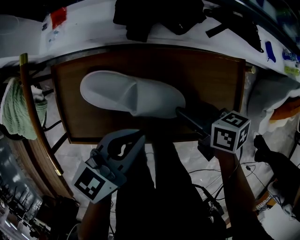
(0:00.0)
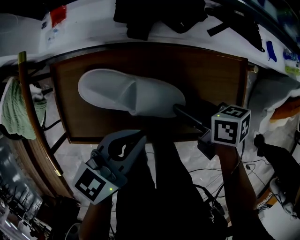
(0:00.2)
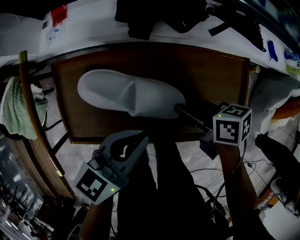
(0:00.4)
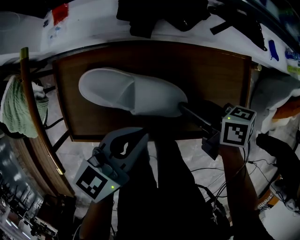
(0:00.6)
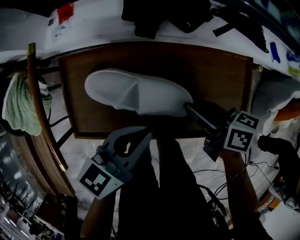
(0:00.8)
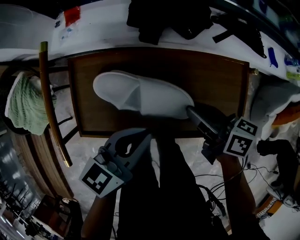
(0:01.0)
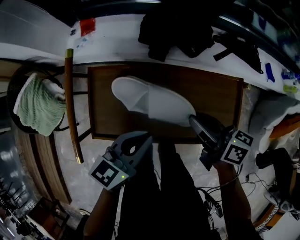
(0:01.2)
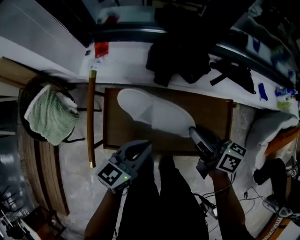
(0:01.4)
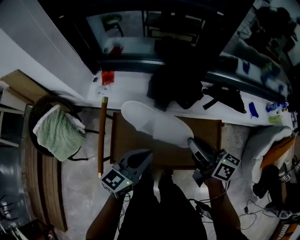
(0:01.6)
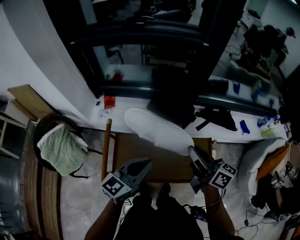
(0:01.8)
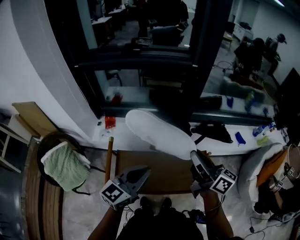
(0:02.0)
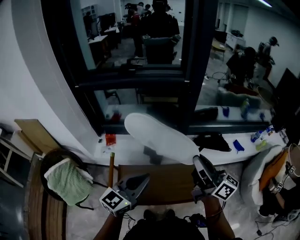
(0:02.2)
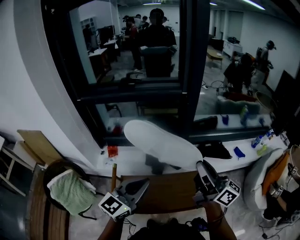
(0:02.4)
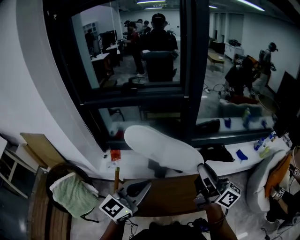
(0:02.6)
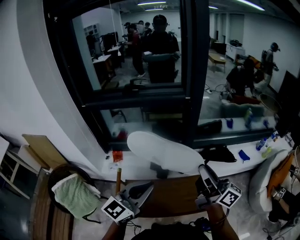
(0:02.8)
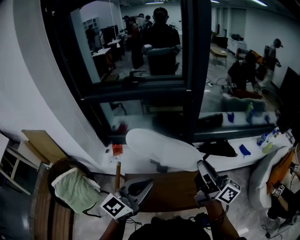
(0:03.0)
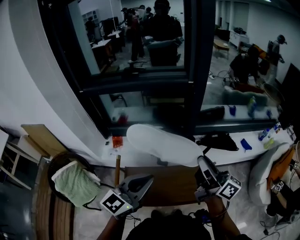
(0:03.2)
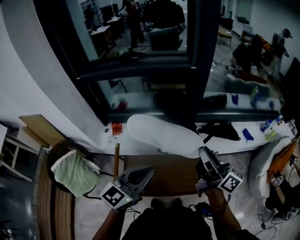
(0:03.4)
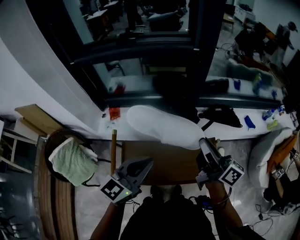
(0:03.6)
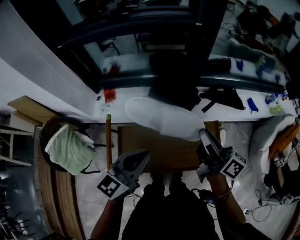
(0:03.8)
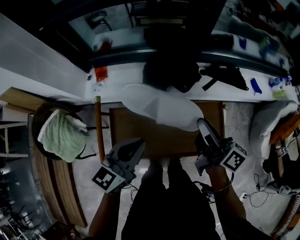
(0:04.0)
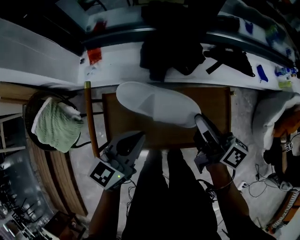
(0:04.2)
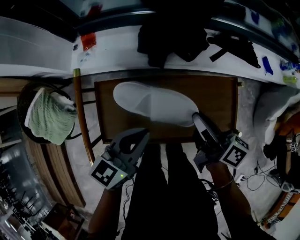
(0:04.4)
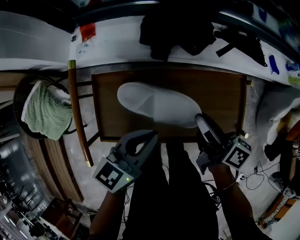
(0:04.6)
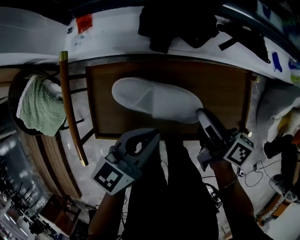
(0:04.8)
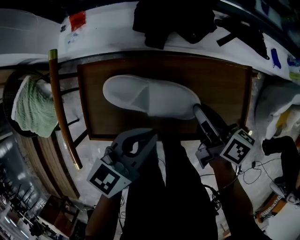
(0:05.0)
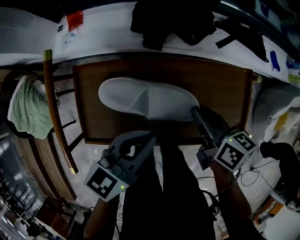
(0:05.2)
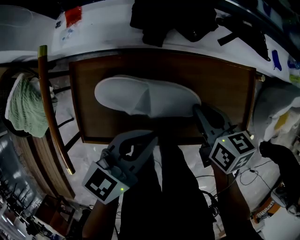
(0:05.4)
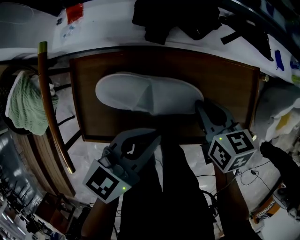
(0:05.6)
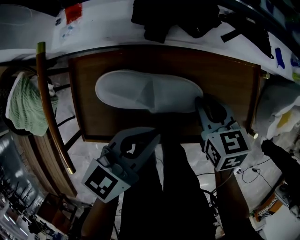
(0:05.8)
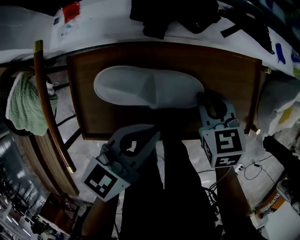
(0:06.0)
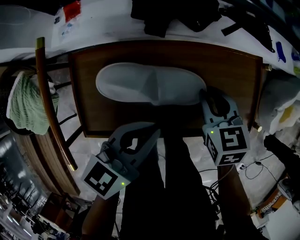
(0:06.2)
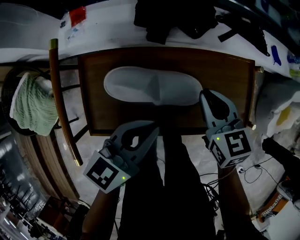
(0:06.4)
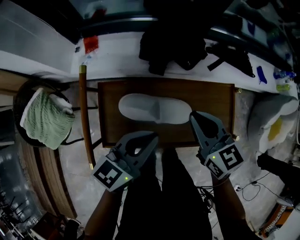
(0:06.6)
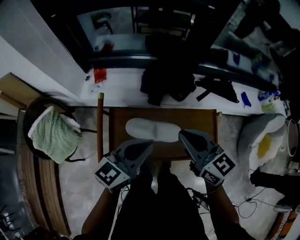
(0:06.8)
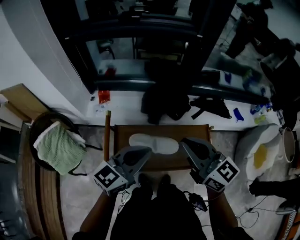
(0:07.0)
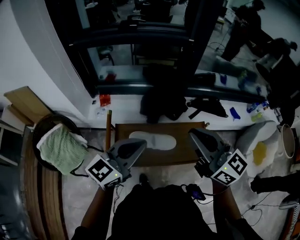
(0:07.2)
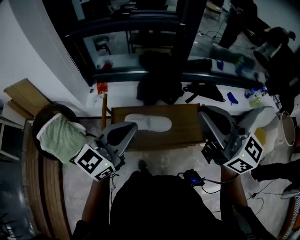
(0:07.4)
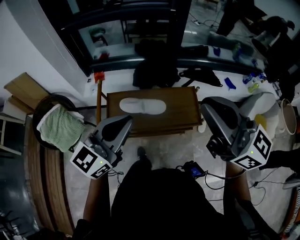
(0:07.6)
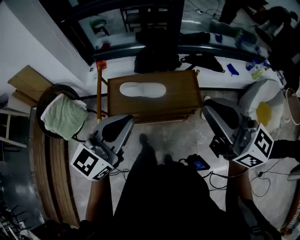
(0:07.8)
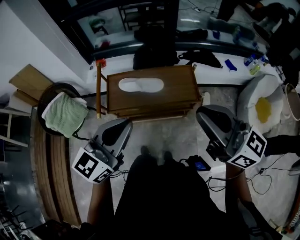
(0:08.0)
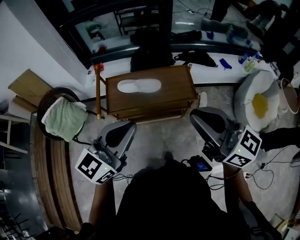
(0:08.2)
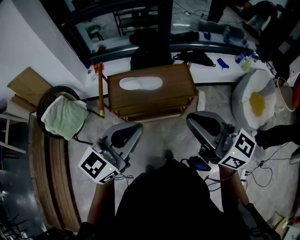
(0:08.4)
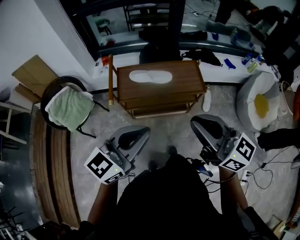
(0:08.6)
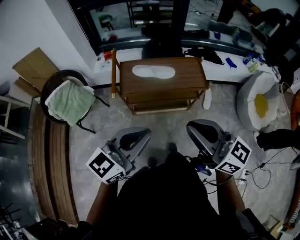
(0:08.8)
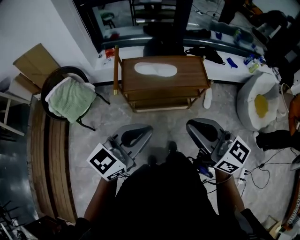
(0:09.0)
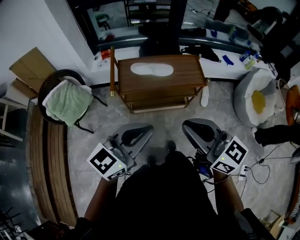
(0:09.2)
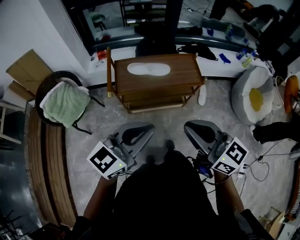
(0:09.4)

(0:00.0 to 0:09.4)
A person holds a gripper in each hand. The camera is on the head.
0:00.0 - 0:01.6: The left gripper travels upward and to the left by some 15 cm, while the right gripper shifts approximately 25 cm upward, tips its fingers upward by some 30 degrees, and closes its fingers.
0:01.6 - 0:03.2: The grippers both shift upward by some 20 cm. The right gripper rotates roughly 30 degrees. The left gripper swivels about 20 degrees.
0:03.2 - 0:04.8: Both grippers travel together downward, some 35 cm. The right gripper points its fingers about 40 degrees further downward, while the left gripper turns by approximately 30 degrees.
0:04.8 - 0:06.2: The right gripper is displaced downward by approximately 5 cm, and rolls counterclockwise, seen from behind, by approximately 60 degrees.
0:06.2 - 0:07.8: Both grippers move upward and backward, roughly 50 cm. The right gripper angles its fingers upward, by some 60 degrees. Meanwhile the left gripper rotates approximately 30 degrees.
0:07.8 - 0:09.4: The right gripper goes some 25 cm backward, to the left and downward; the left gripper is displaced backward by approximately 20 cm.

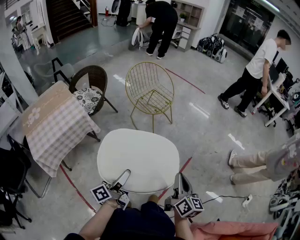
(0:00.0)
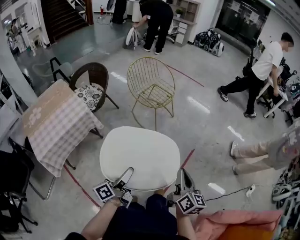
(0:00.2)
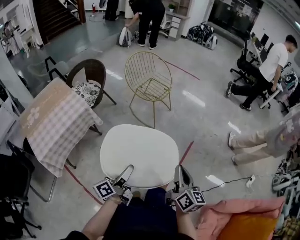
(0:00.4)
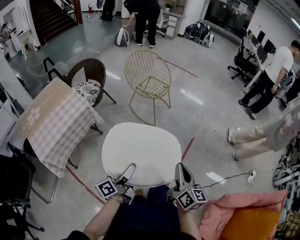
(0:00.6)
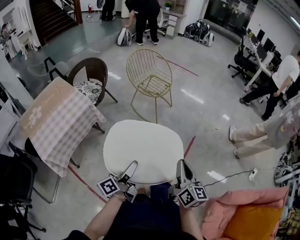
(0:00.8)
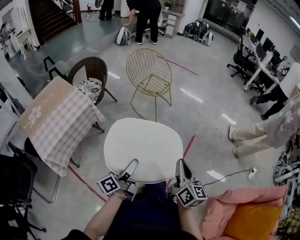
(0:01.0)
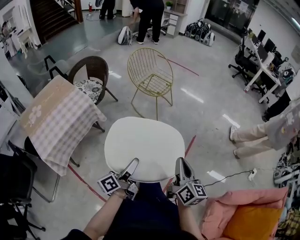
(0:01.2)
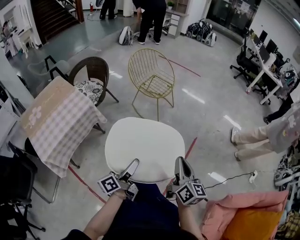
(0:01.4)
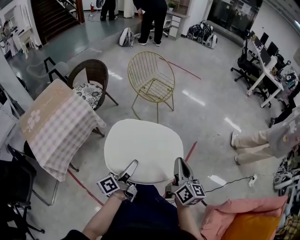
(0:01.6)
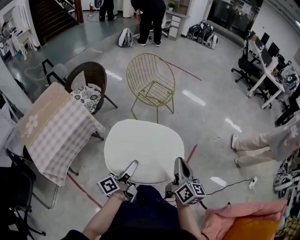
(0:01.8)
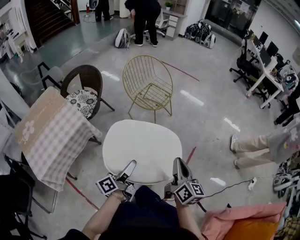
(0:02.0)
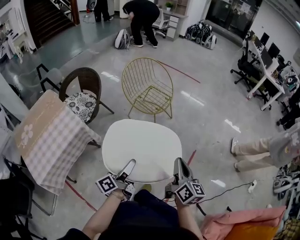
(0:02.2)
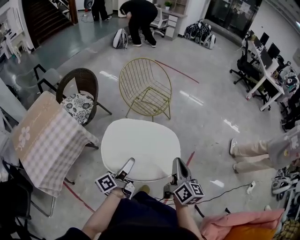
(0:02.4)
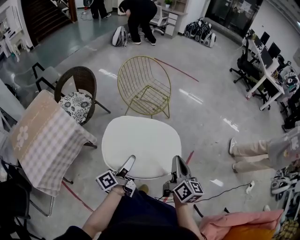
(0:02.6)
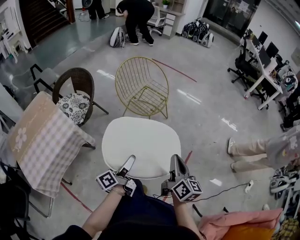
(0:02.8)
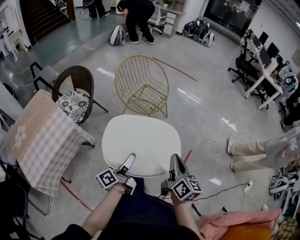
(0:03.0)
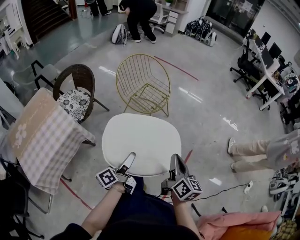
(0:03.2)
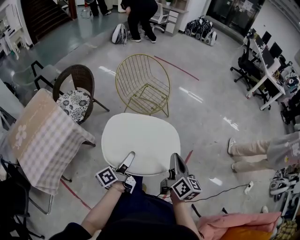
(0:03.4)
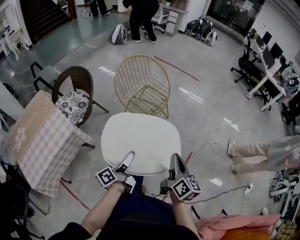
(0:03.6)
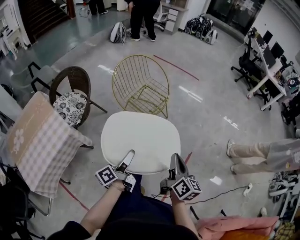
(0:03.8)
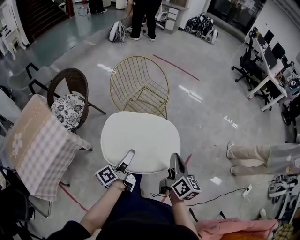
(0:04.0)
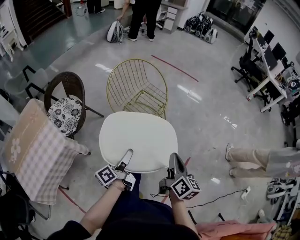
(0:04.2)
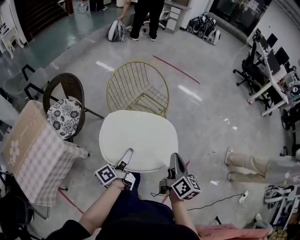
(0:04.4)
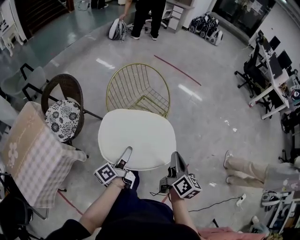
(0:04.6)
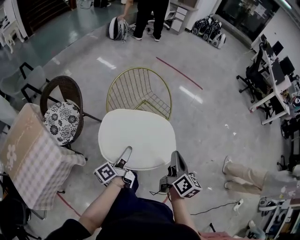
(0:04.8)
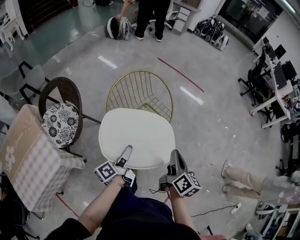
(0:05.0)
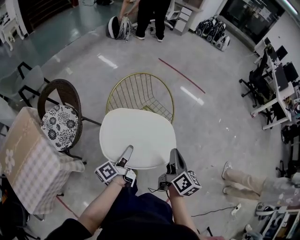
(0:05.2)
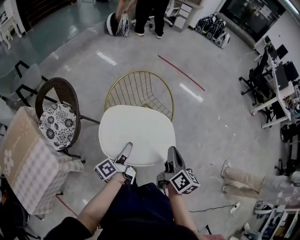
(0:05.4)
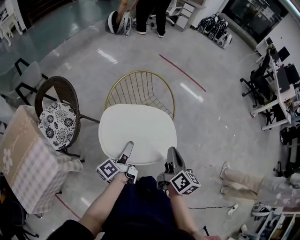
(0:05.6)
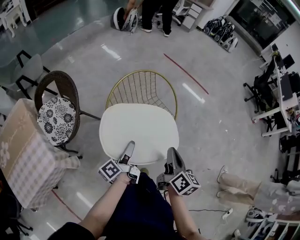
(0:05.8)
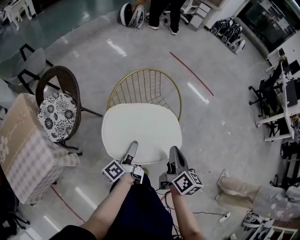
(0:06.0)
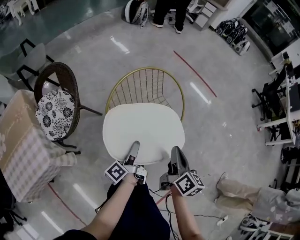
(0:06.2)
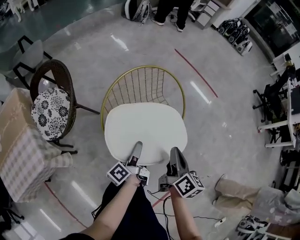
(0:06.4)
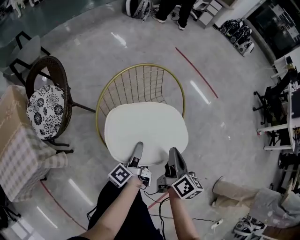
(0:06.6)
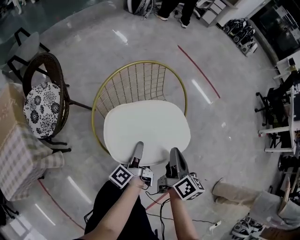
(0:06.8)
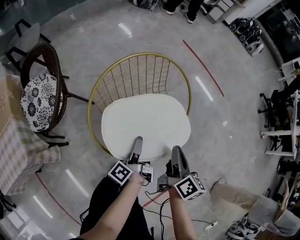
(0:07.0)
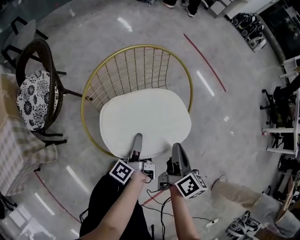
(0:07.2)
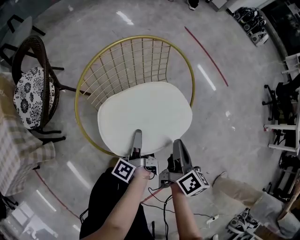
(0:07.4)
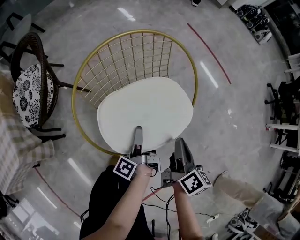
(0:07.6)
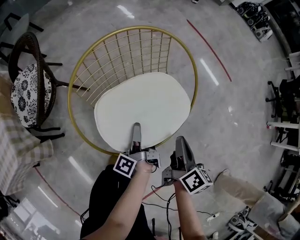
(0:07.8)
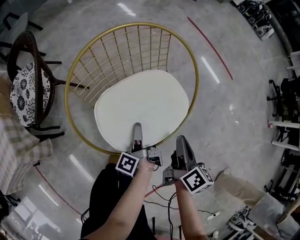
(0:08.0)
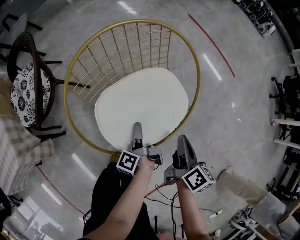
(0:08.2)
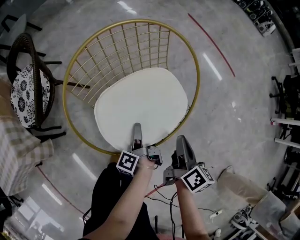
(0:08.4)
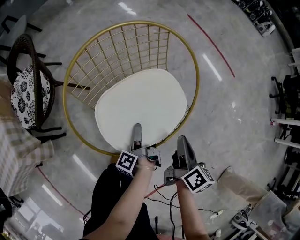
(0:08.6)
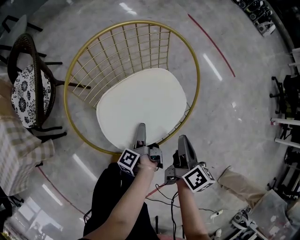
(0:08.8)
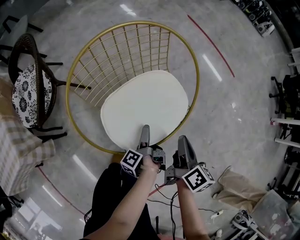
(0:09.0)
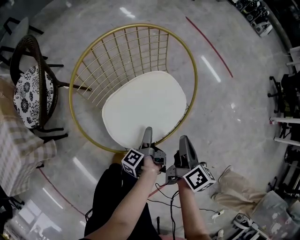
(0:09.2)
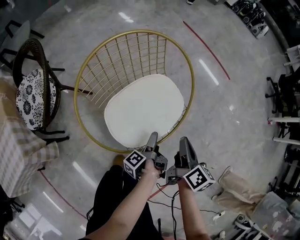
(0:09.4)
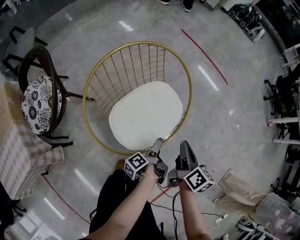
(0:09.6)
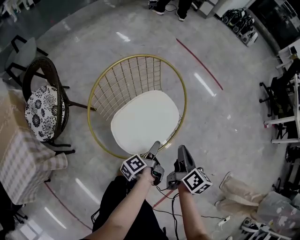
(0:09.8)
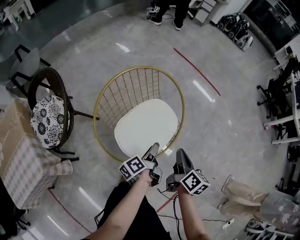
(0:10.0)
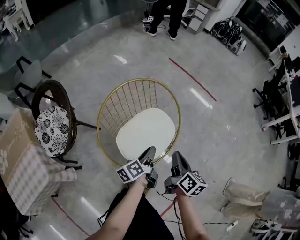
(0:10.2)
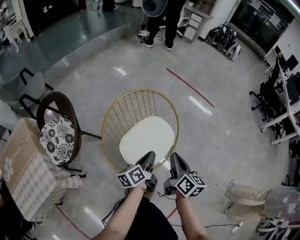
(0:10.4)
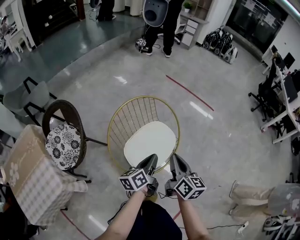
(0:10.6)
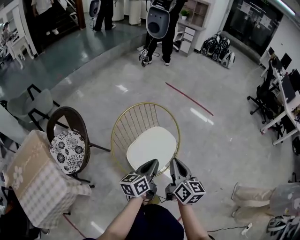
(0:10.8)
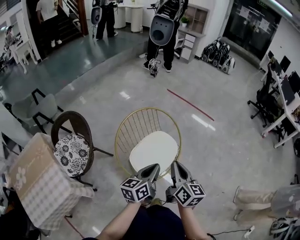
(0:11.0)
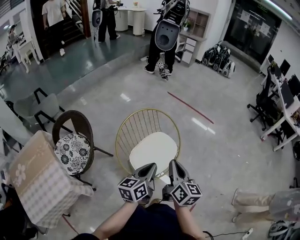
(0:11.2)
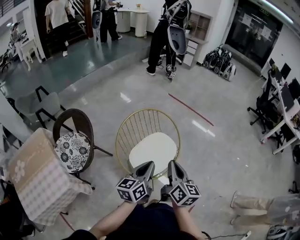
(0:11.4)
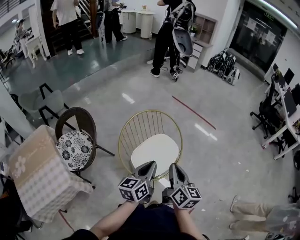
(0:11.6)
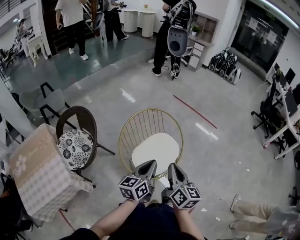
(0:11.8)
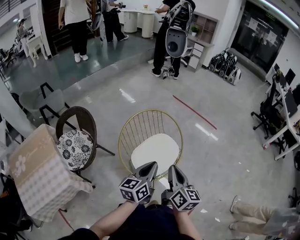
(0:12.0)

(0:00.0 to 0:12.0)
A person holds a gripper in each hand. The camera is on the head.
0:00.0 - 0:01.6: The right gripper changes place by some 10 cm.
0:01.6 - 0:03.0: The right gripper ends up some 15 cm from where it was.
0:03.0 - 0:04.4: The right gripper changes place by some 20 cm.
0:04.4 - 0:06.0: The right gripper changes place by about 25 cm.
0:06.0 - 0:07.6: The right gripper goes roughly 15 cm downward.
0:09.0 - 0:10.4: The right gripper moves upward, roughly 15 cm.
0:10.4 - 0:12.0: The right gripper travels upward by about 10 cm.

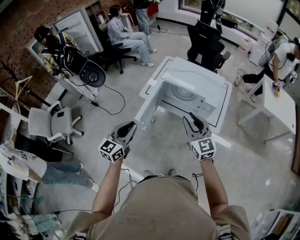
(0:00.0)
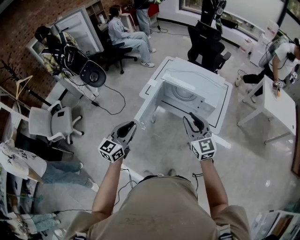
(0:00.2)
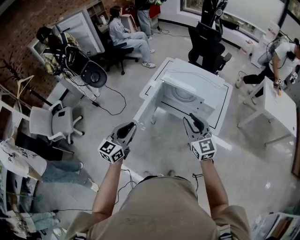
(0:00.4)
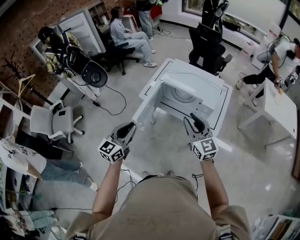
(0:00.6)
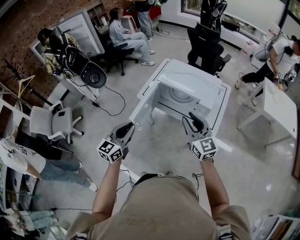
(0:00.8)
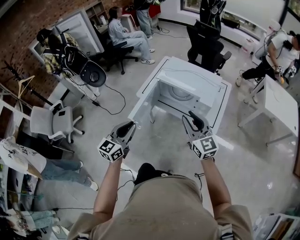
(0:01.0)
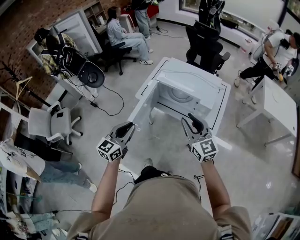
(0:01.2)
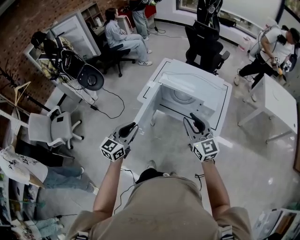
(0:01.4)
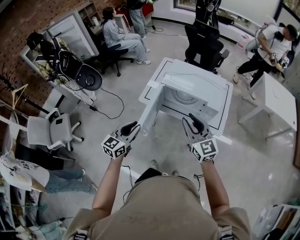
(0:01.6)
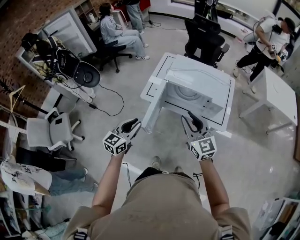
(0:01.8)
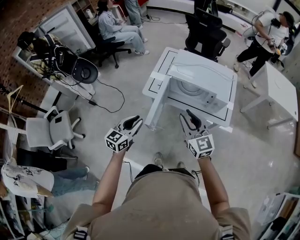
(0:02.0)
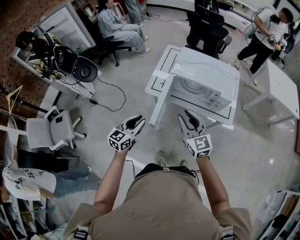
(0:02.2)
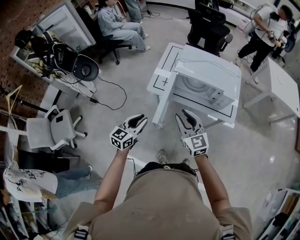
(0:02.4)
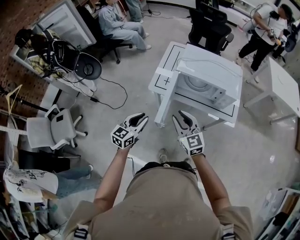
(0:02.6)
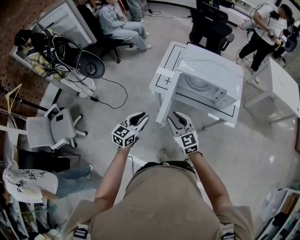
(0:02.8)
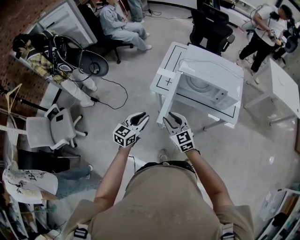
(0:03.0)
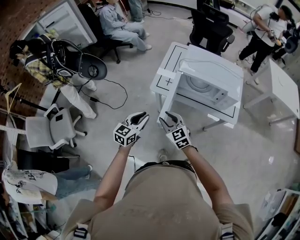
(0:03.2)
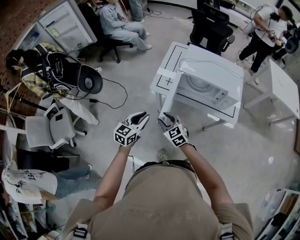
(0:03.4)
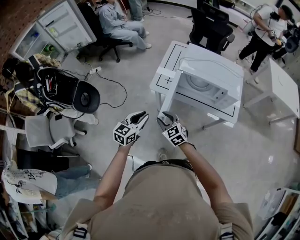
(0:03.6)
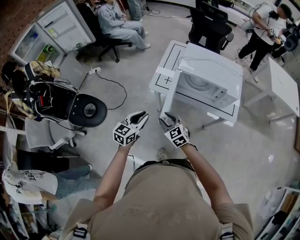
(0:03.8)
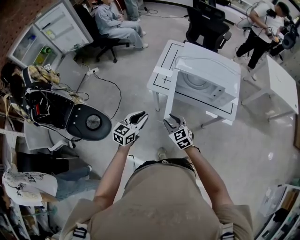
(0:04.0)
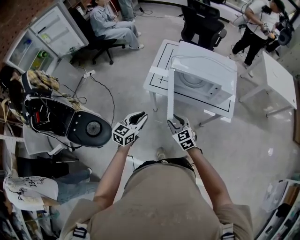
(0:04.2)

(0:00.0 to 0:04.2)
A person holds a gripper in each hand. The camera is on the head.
0:00.0 - 0:01.4: There are only small adjustments of the grippers.
0:01.4 - 0:02.8: The left gripper travels to the left, downward and forward by approximately 20 cm; the right gripper moves to the left and downward, about 25 cm.
0:02.8 - 0:04.2: The right gripper shifts approximately 10 cm downward.
